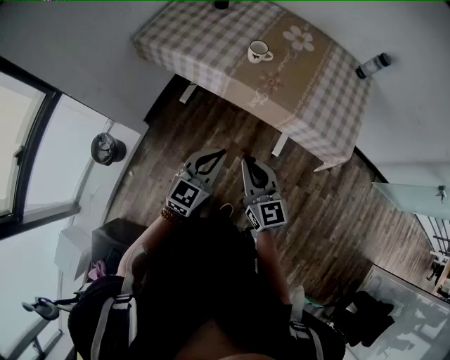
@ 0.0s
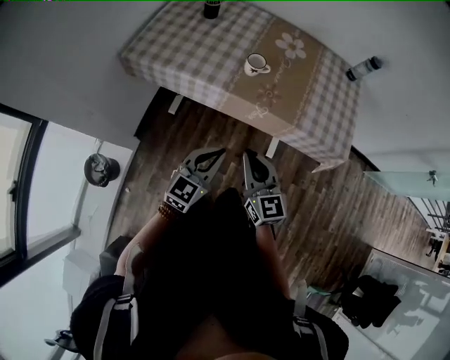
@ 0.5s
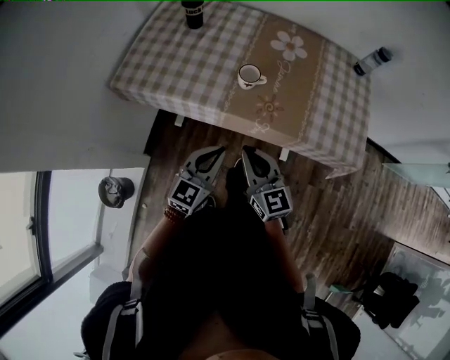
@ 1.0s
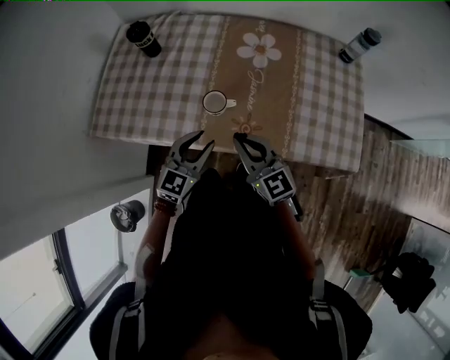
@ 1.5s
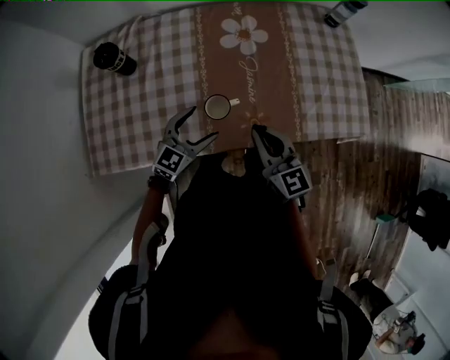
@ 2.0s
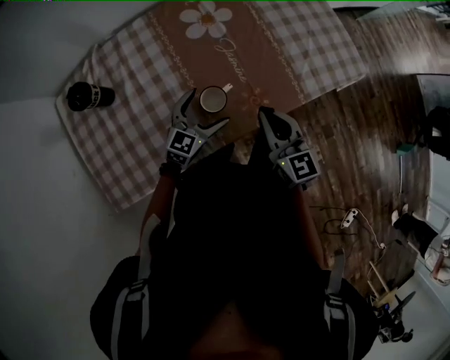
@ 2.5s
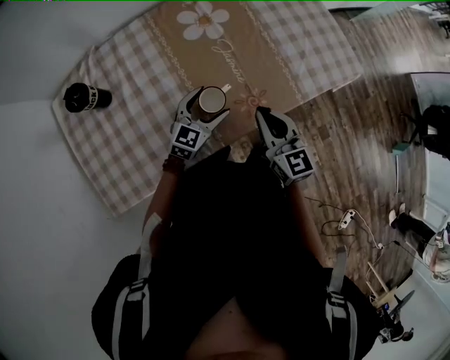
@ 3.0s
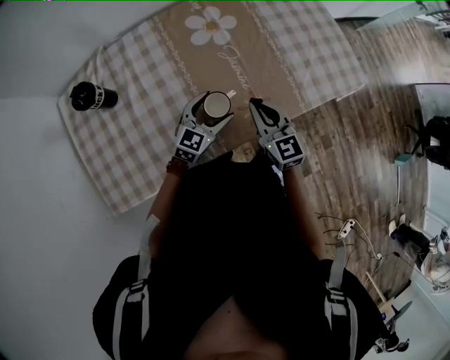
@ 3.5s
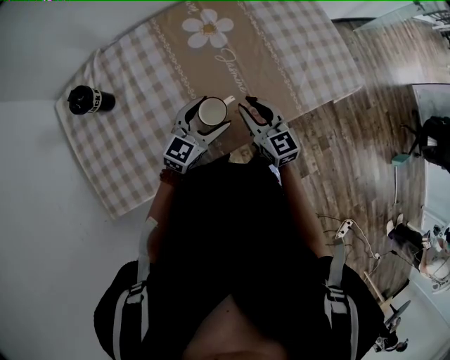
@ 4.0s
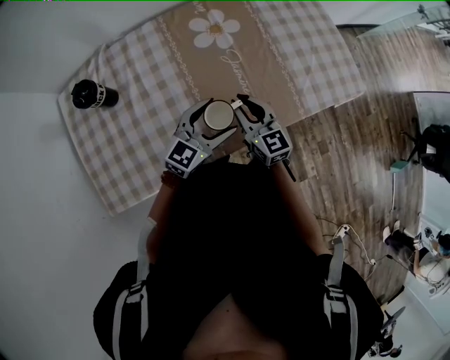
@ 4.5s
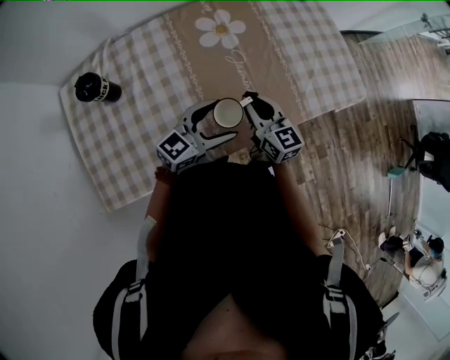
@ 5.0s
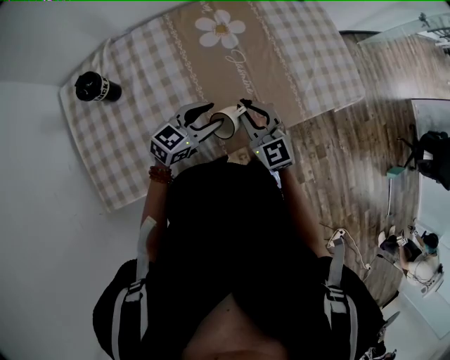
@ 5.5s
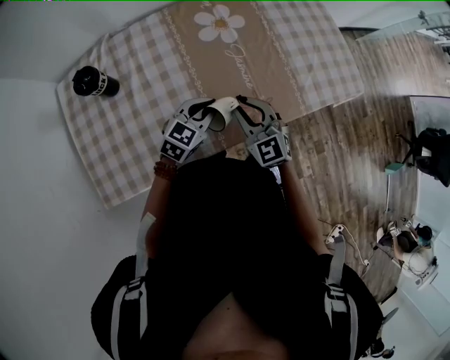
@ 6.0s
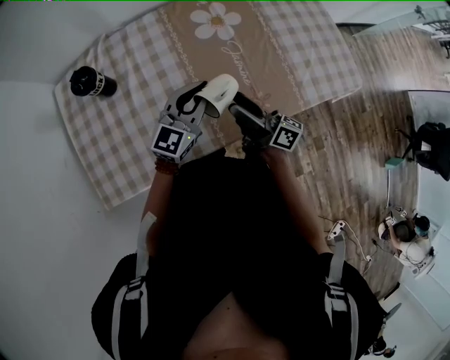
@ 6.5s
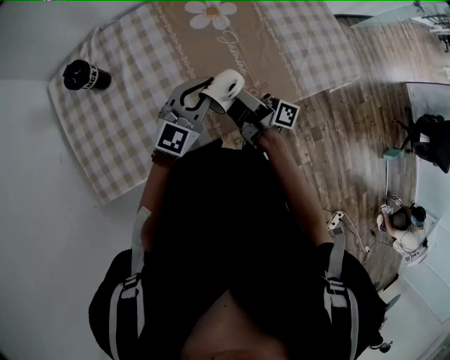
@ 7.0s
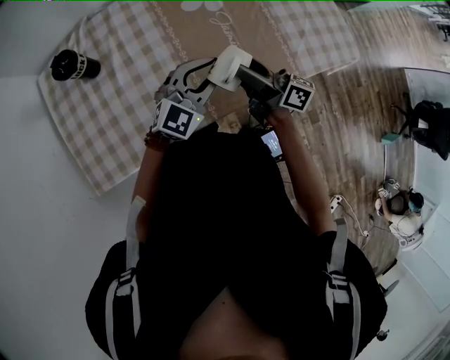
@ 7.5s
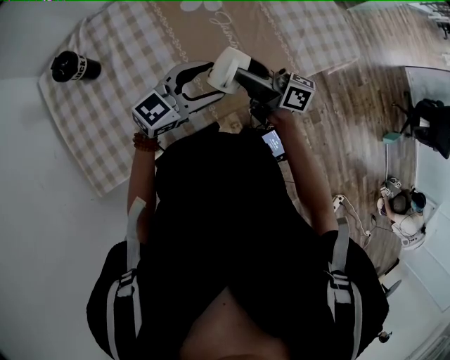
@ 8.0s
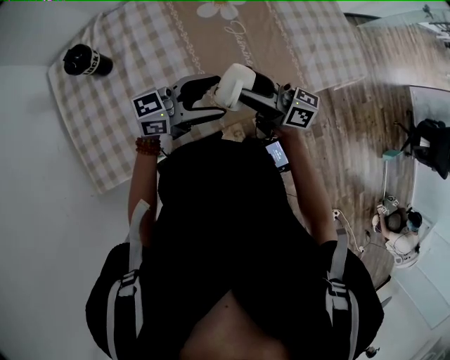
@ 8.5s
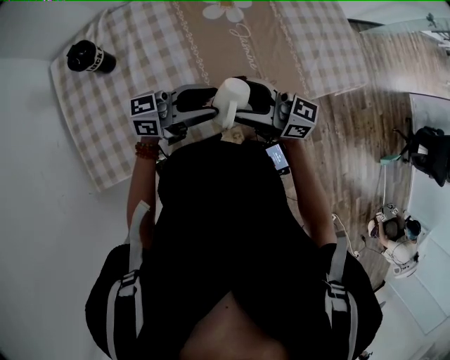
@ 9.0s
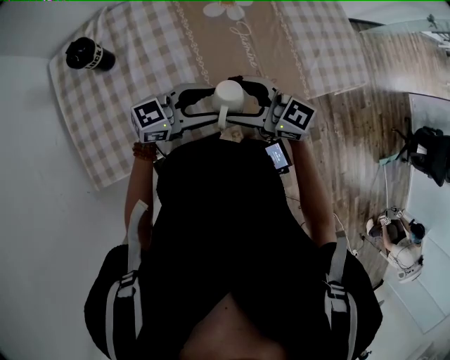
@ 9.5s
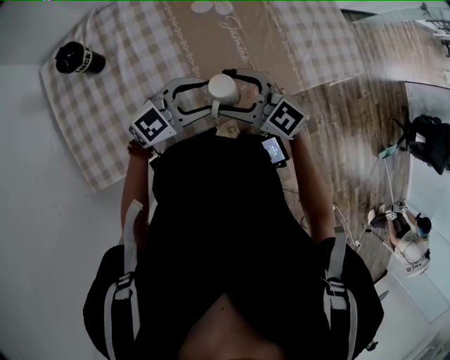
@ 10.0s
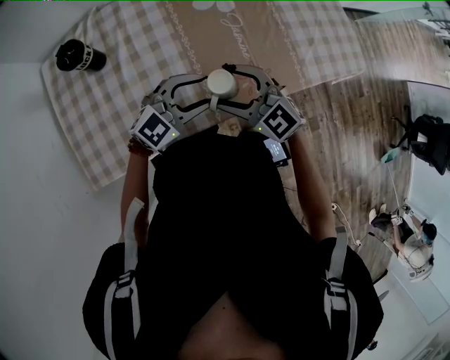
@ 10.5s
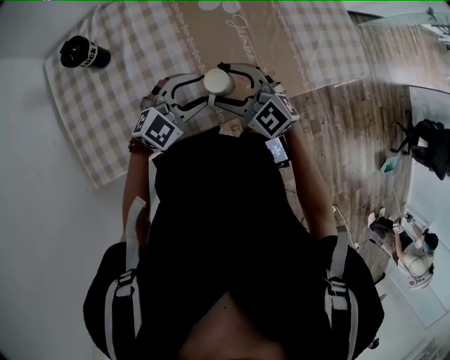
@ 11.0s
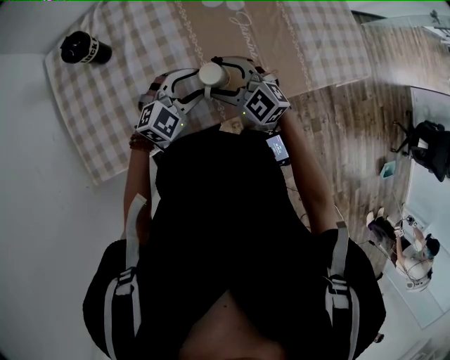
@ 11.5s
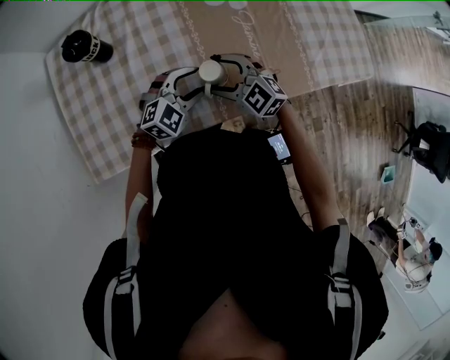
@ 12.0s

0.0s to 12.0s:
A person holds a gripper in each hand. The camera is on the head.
0.0s to 2.0s: The left gripper ends up about 30 cm from where it was, swivels approximately 40 degrees, and opens. The right gripper swivels roughly 20 degrees.
2.0s to 4.0s: The right gripper travels downward by approximately 10 cm.
4.0s to 6.0s: The right gripper changes place by approximately 5 cm, and turns by some 30 degrees; the left gripper closes.
6.0s to 8.0s: The left gripper goes roughly 10 cm upward, turns by some 30 degrees, and opens; the right gripper rolls clockwise, seen from behind, by some 70 degrees, and opens up.
8.0s to 10.0s: The right gripper moves roughly 10 cm, and rolls counterclockwise, seen from behind, by about 60 degrees.
10.0s to 12.0s: The two grippers go about 10 cm downward. The left gripper rotates some 30 degrees.

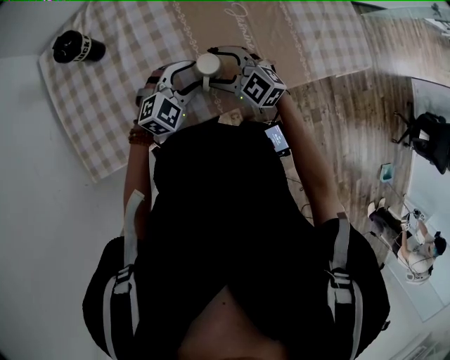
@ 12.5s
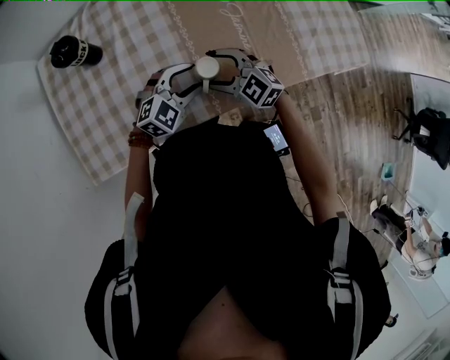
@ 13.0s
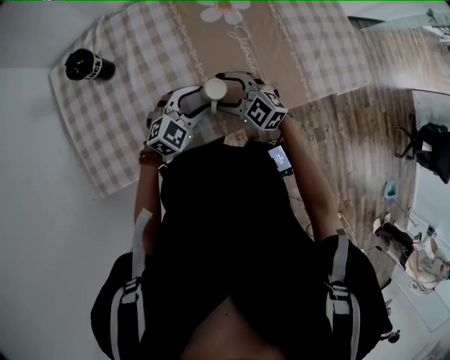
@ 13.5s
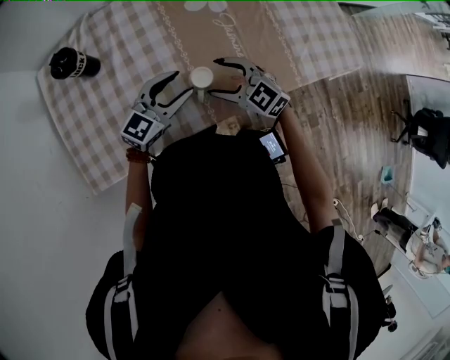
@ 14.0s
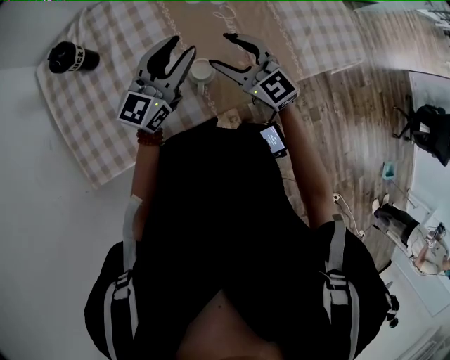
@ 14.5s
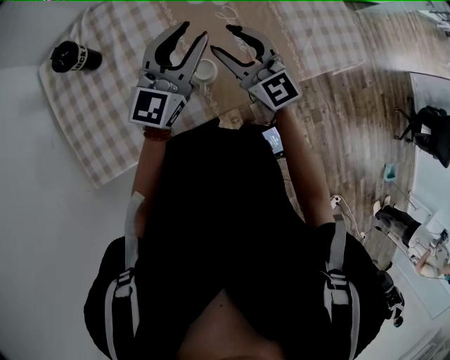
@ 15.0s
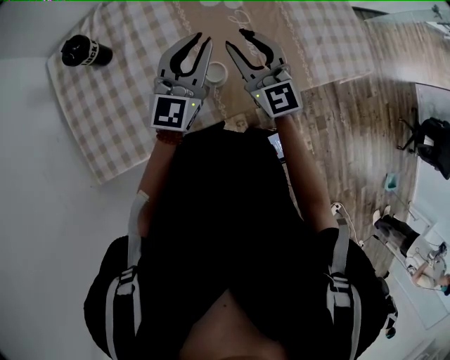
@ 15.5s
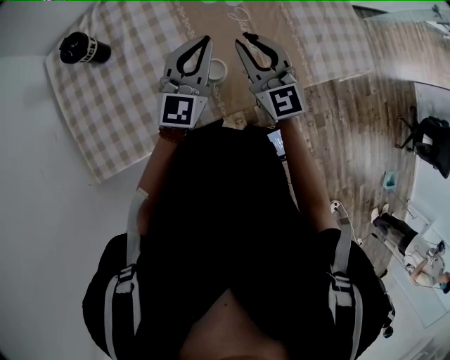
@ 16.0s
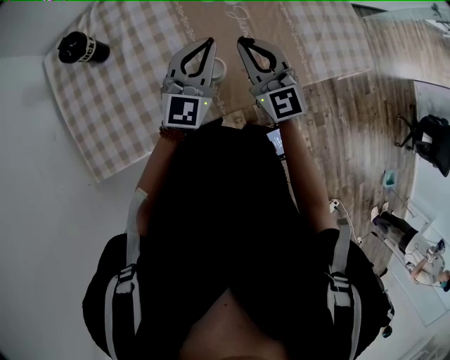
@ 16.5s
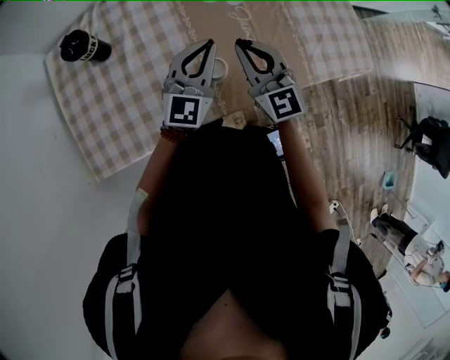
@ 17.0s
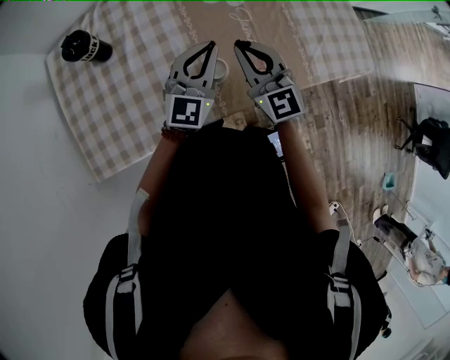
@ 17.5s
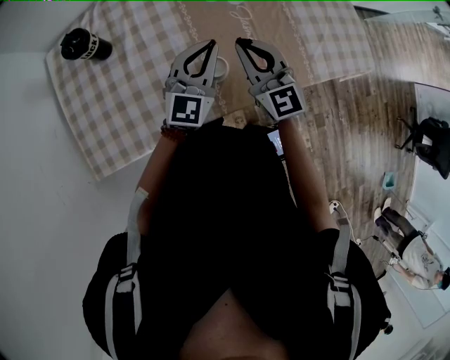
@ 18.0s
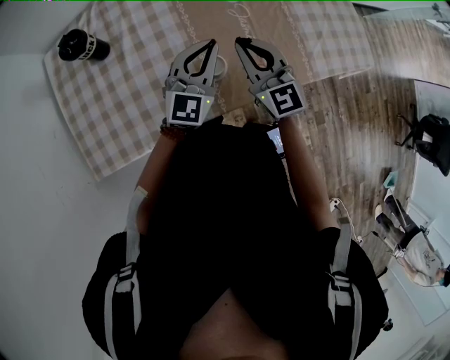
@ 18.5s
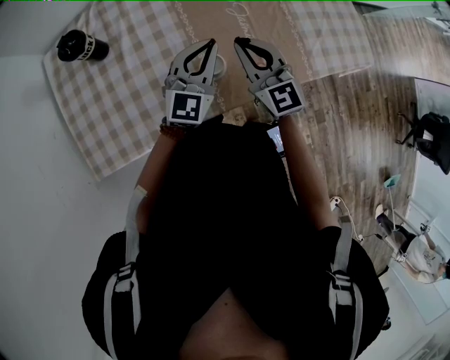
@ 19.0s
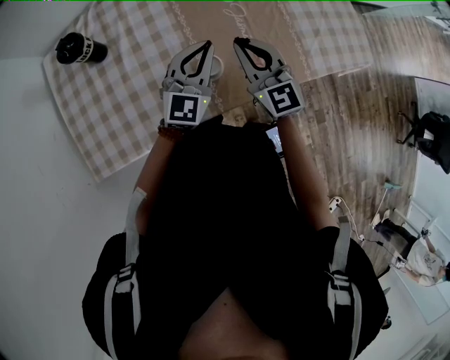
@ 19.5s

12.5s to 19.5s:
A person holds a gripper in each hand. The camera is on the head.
12.5s to 14.5s: The left gripper heads upward and forward, covering about 15 cm, and angles its fingers upward, by approximately 40 degrees; the right gripper travels upward and to the right by some 10 cm, and changes its angle by some 30 degrees.
14.5s to 16.0s: The right gripper moves about 5 cm, and closes its fingers.
16.0s to 19.5s: The grippers make only small movements.

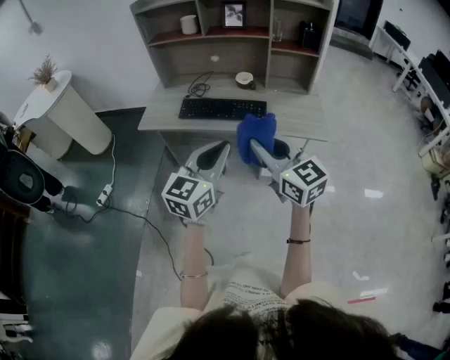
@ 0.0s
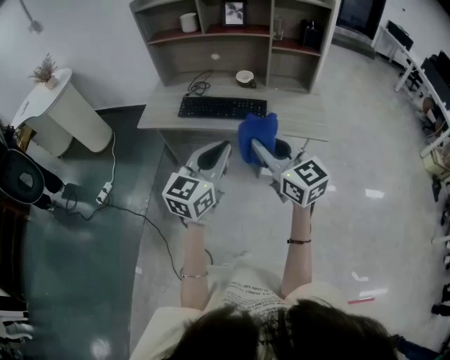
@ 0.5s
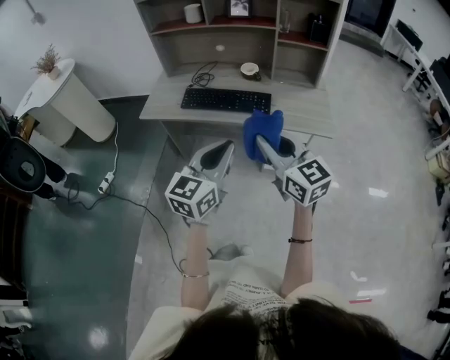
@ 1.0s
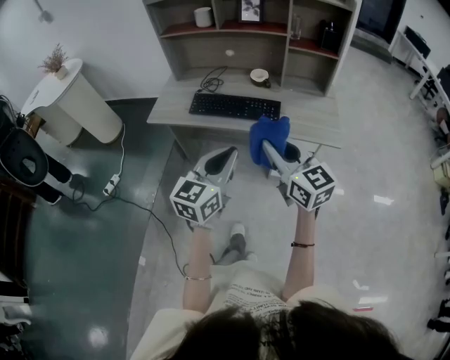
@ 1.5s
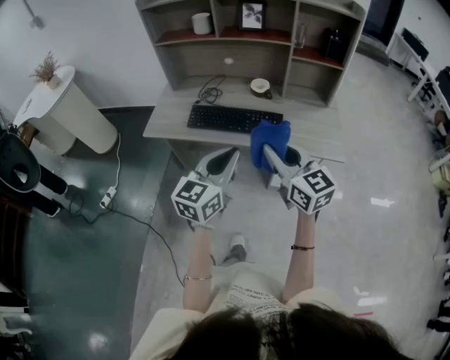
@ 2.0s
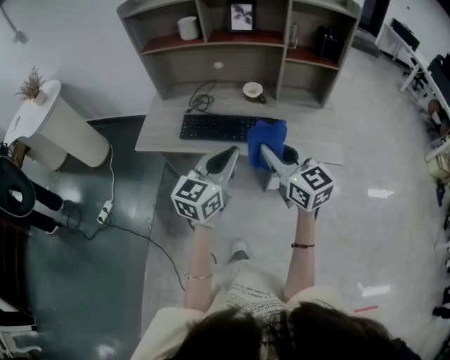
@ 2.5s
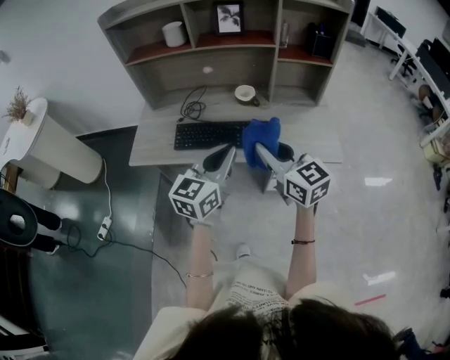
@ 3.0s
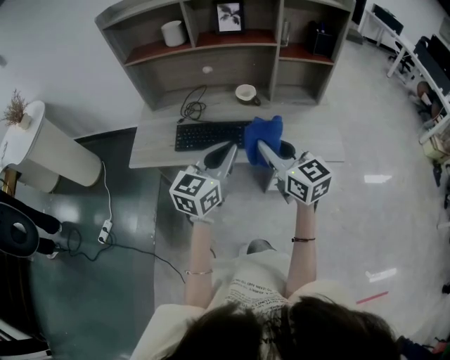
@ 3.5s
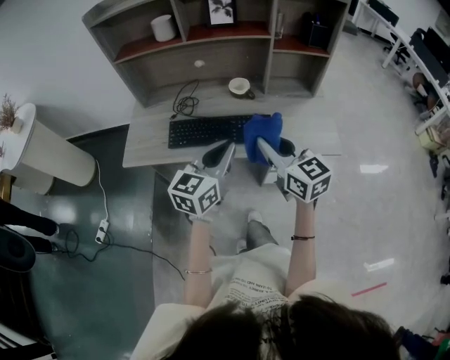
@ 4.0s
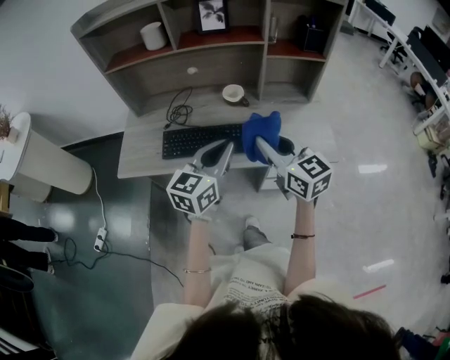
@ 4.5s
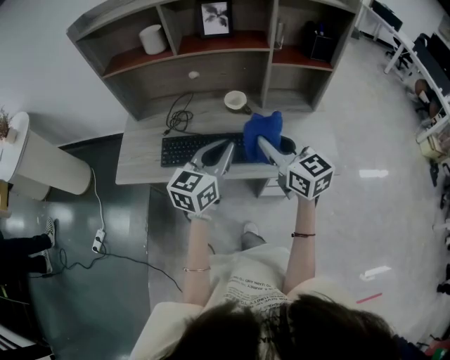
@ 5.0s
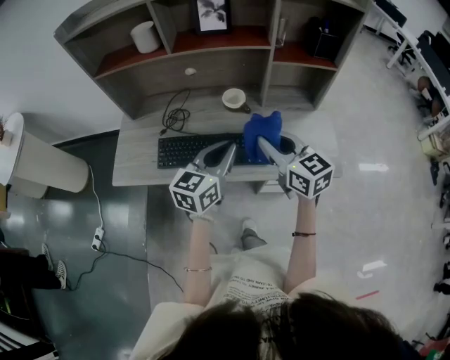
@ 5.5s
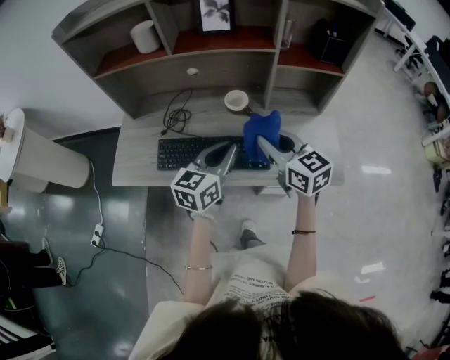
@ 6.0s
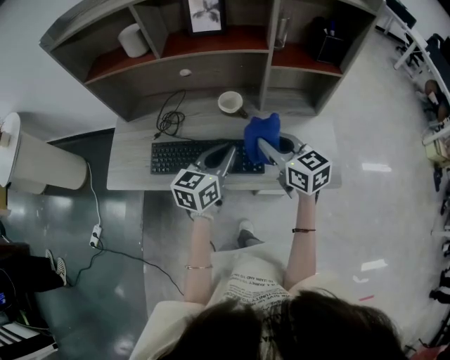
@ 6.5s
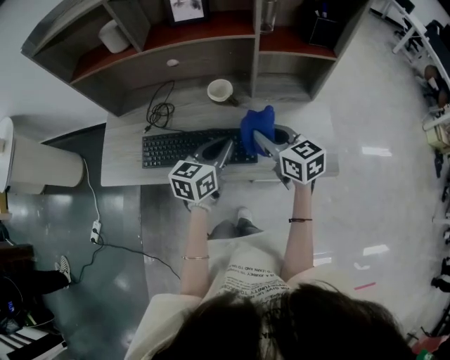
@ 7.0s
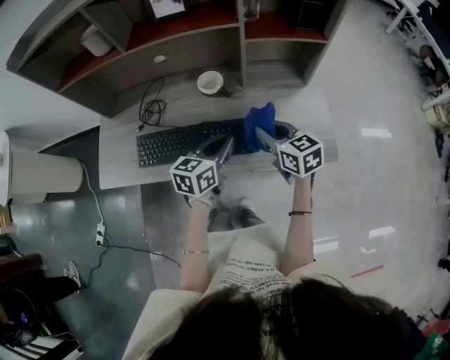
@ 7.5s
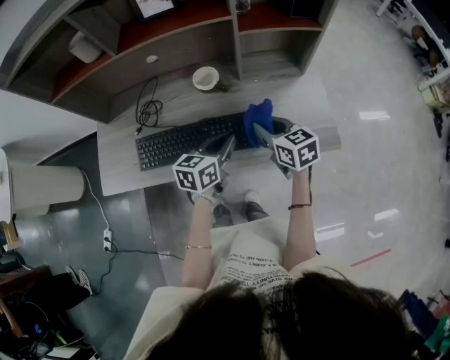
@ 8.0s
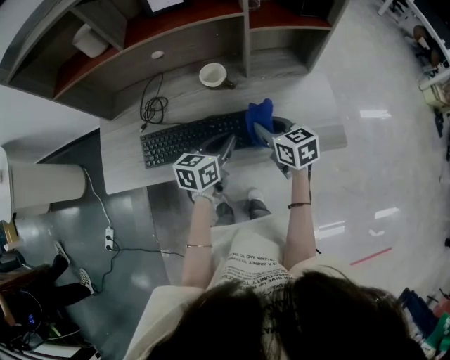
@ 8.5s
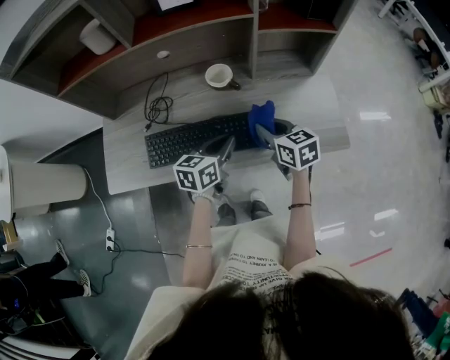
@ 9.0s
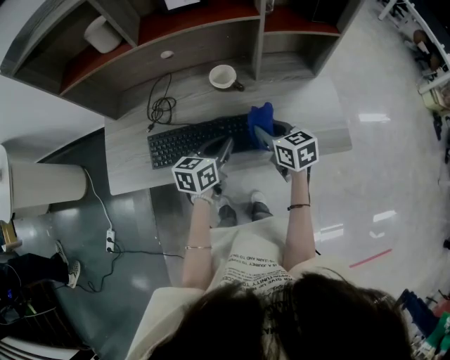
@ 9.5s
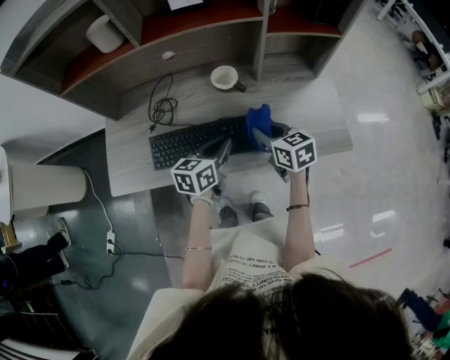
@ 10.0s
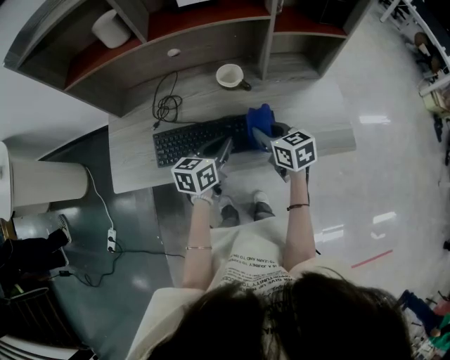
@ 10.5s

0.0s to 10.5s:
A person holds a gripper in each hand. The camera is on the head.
0.0s to 2.0s: Both grippers travel together forward, approximately 10 cm.
2.0s to 4.0s: The two grippers go roughly 10 cm forward.
4.0s to 6.5s: The left gripper heads forward, downward and to the right, covering approximately 20 cm. The right gripper travels forward by roughly 20 cm.
6.5s to 8.5s: The two grippers go some 10 cm downward.
8.5s to 10.5s: The two grippers go about 5 cm to the left.
